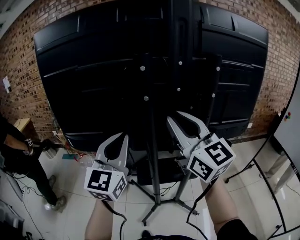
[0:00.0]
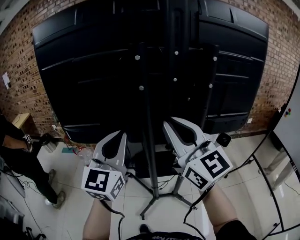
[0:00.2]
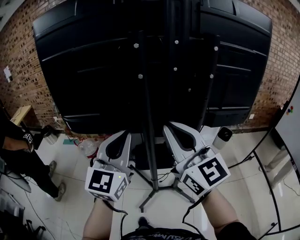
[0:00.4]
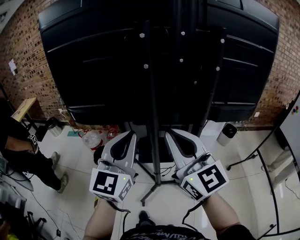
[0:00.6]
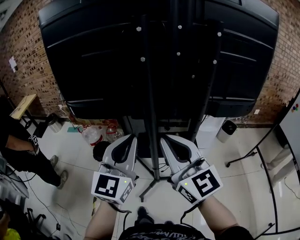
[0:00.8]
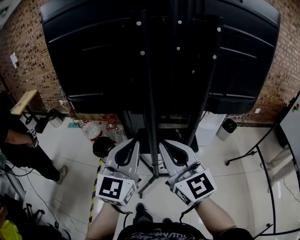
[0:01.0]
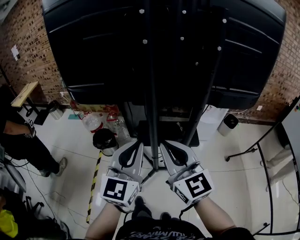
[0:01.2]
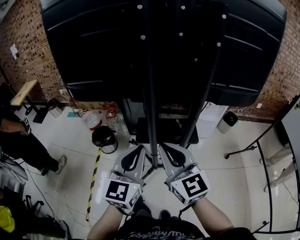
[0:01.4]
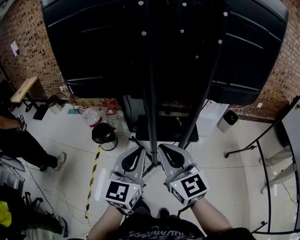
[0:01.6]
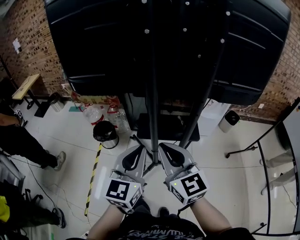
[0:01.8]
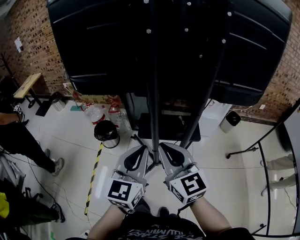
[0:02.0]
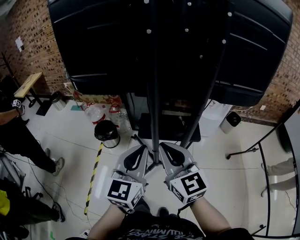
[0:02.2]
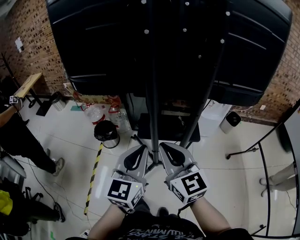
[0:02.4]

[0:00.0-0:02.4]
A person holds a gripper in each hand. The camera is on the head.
0:00.0 to 0:01.2: Both grippers move downward and backward, approximately 20 cm.
0:01.2 to 0:02.4: The left gripper shifts roughly 5 cm downward.

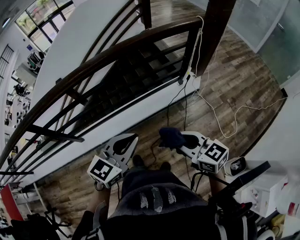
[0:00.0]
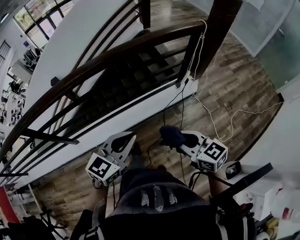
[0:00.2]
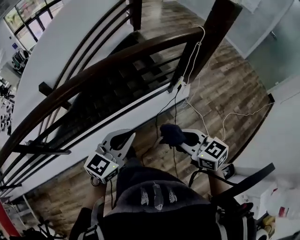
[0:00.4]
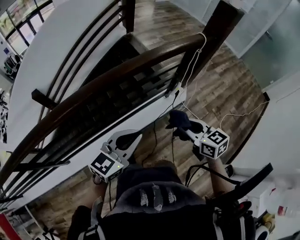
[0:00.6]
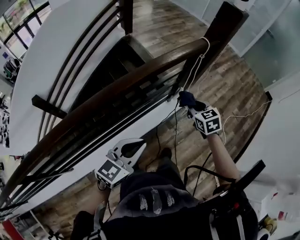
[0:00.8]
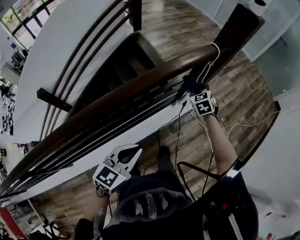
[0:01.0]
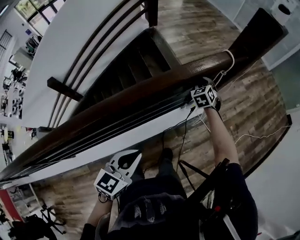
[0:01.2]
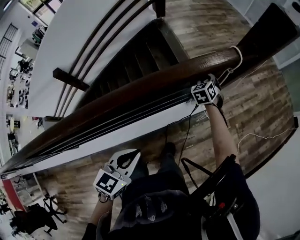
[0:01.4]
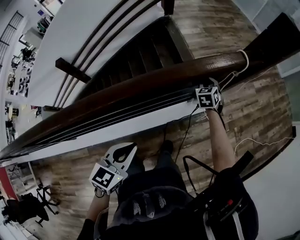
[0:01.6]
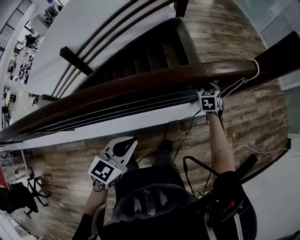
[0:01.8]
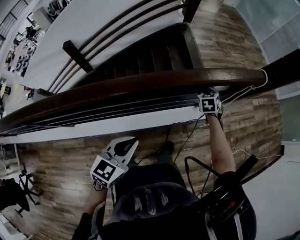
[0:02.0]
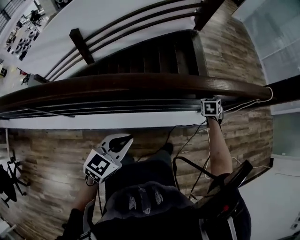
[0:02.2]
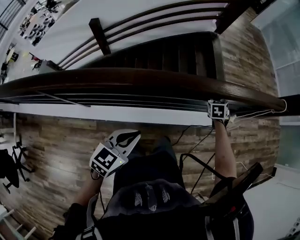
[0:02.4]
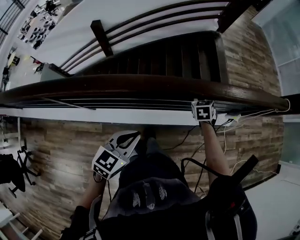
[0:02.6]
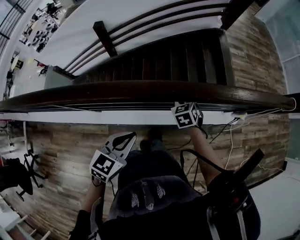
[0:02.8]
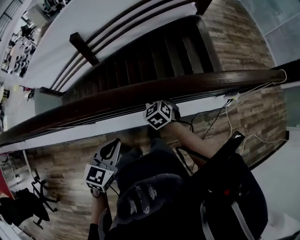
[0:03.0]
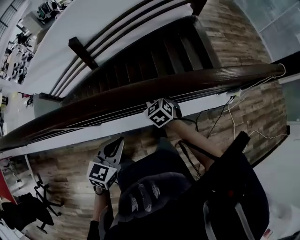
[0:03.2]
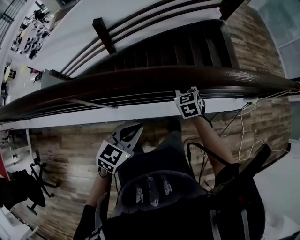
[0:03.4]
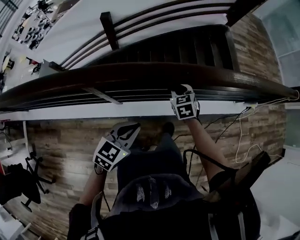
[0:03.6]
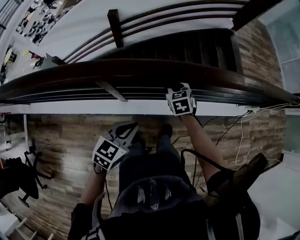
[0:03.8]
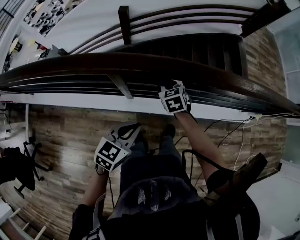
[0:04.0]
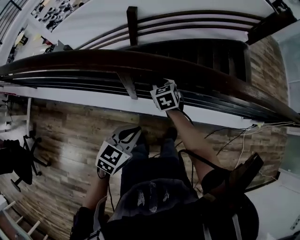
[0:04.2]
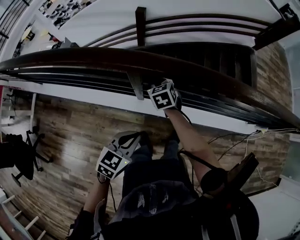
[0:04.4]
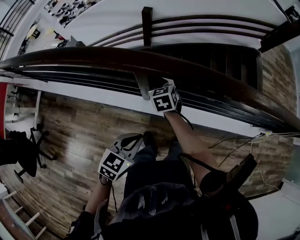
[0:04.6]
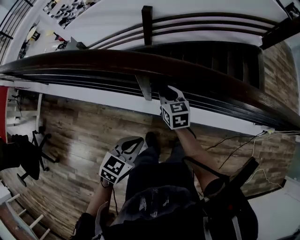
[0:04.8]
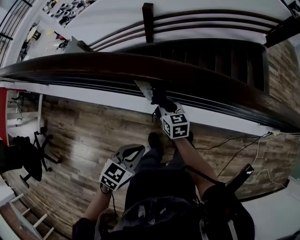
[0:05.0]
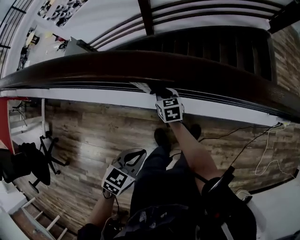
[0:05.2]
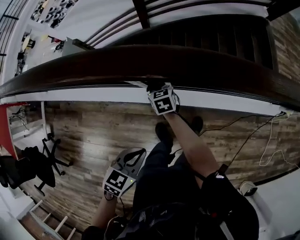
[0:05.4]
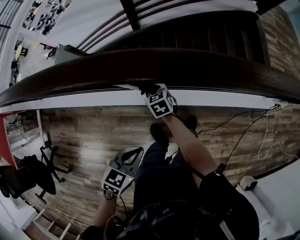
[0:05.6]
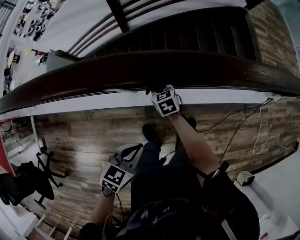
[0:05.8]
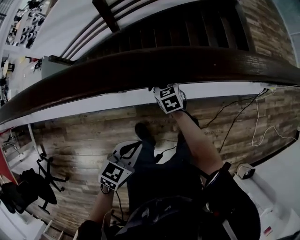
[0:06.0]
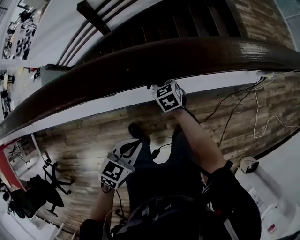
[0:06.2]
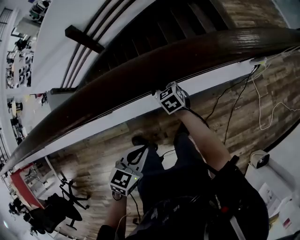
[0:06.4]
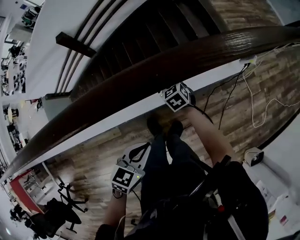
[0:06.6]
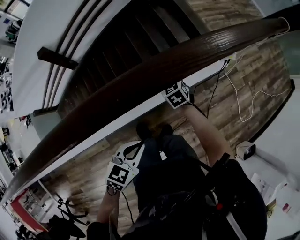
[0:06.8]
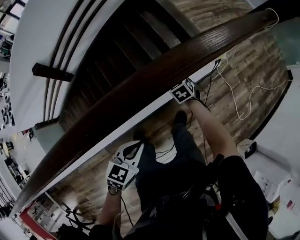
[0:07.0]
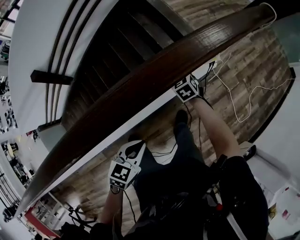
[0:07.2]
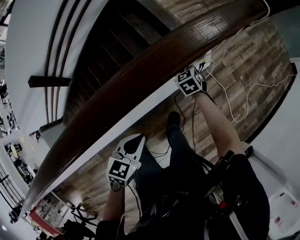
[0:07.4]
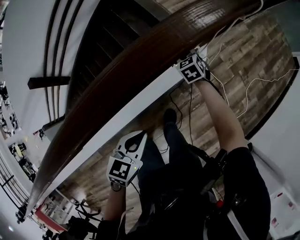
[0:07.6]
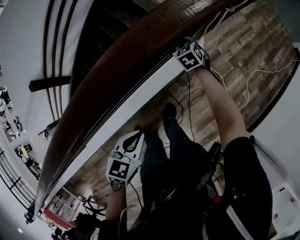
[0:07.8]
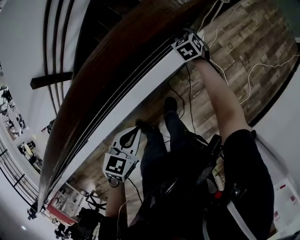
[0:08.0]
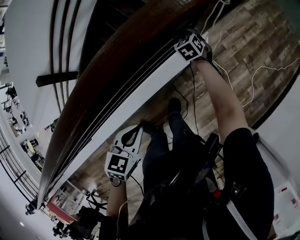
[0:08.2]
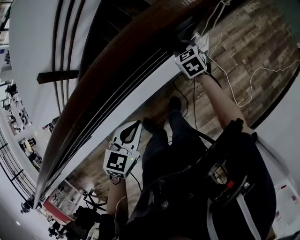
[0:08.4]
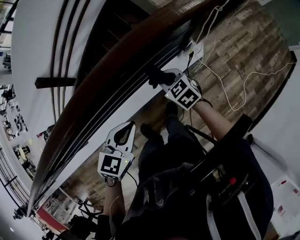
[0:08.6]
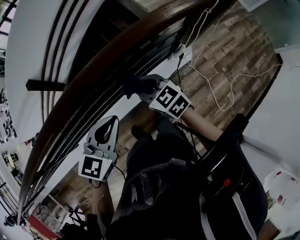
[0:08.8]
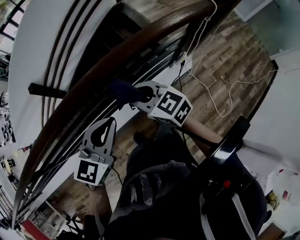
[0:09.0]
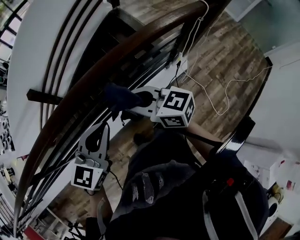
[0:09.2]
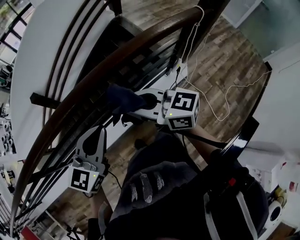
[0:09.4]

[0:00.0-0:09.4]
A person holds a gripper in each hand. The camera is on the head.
0:00.0 to 0:01.6: The right gripper shifts by roughly 70 cm, and rotates roughly 60 degrees. Meanwhile the left gripper changes place by approximately 35 cm.
0:01.6 to 0:03.2: The pair of grippers is taken some 70 cm. The right gripper changes its angle by roughly 40 degrees.
0:03.2 to 0:04.8: The left gripper travels to the left and backward by some 35 cm. Meanwhile the right gripper heads to the left, covering roughly 40 cm, and turns by approximately 30 degrees.
0:04.8 to 0:06.2: The right gripper is displaced to the right and downward by approximately 35 cm; the left gripper shifts about 25 cm to the right, and rotates roughly 20 degrees.
0:06.2 to 0:07.8: Both grippers are carried some 80 cm. The right gripper changes its angle by roughly 30 degrees. Meanwhile the left gripper turns by some 20 degrees.
0:07.8 to 0:09.4: The right gripper changes place by about 70 cm, and tips its fingers upward by about 50 degrees; the left gripper shifts by roughly 35 cm, and points its fingers about 30 degrees further upward.

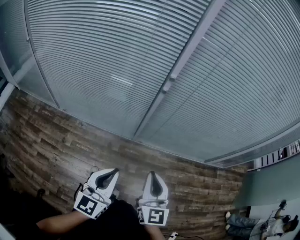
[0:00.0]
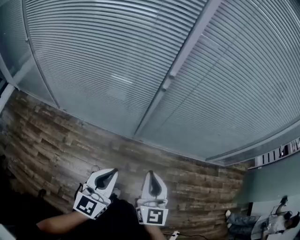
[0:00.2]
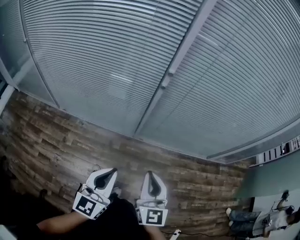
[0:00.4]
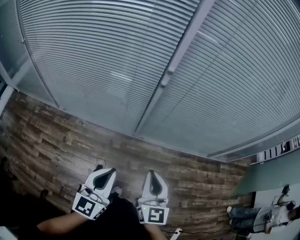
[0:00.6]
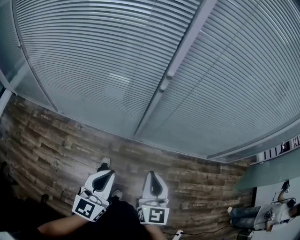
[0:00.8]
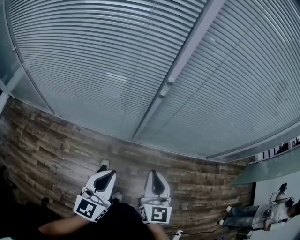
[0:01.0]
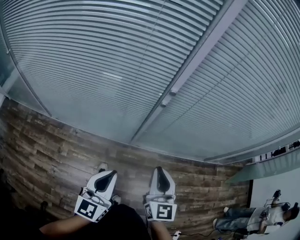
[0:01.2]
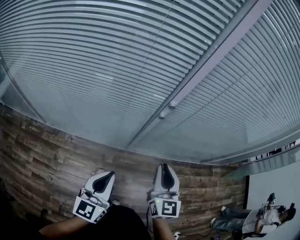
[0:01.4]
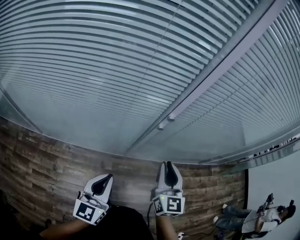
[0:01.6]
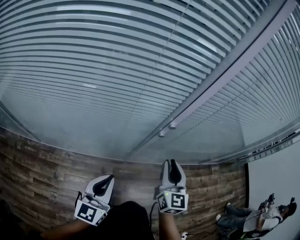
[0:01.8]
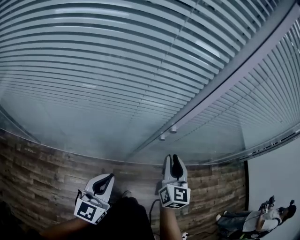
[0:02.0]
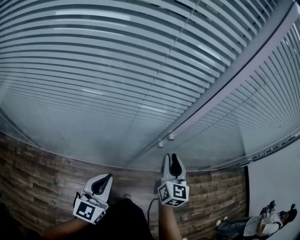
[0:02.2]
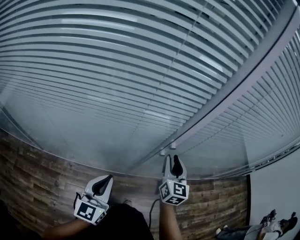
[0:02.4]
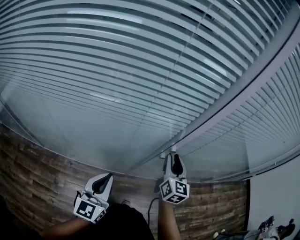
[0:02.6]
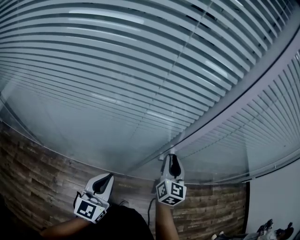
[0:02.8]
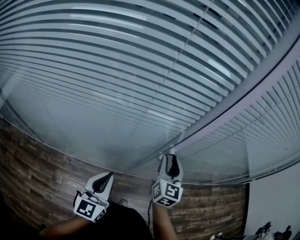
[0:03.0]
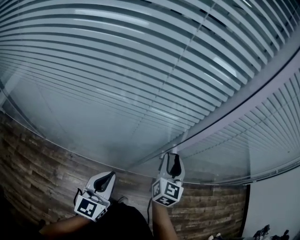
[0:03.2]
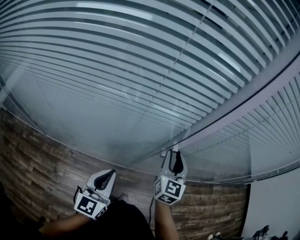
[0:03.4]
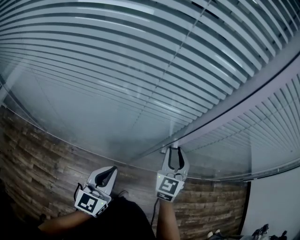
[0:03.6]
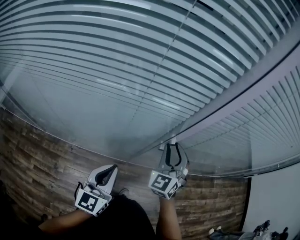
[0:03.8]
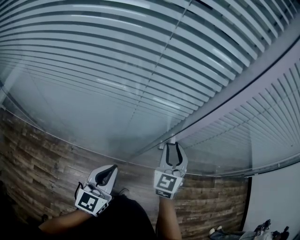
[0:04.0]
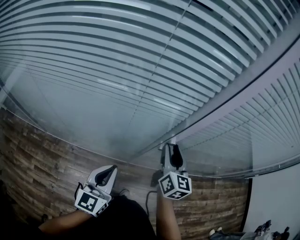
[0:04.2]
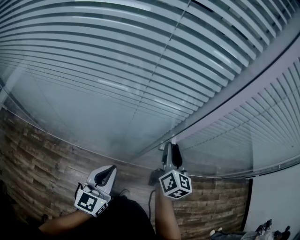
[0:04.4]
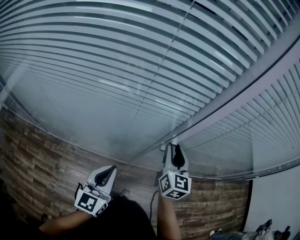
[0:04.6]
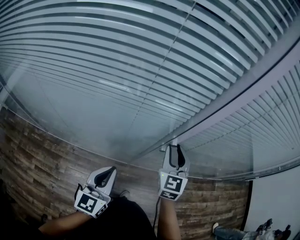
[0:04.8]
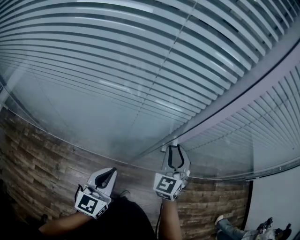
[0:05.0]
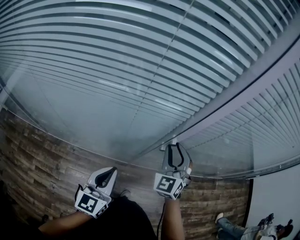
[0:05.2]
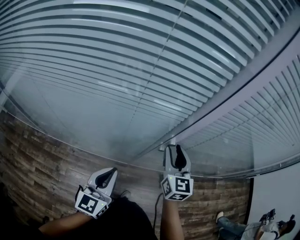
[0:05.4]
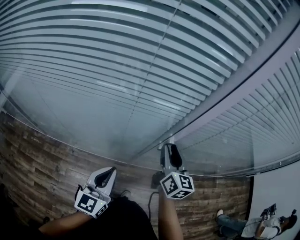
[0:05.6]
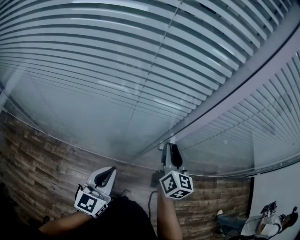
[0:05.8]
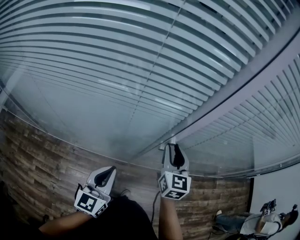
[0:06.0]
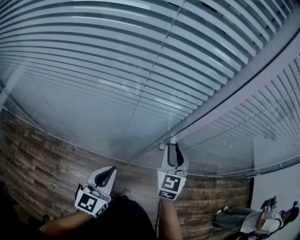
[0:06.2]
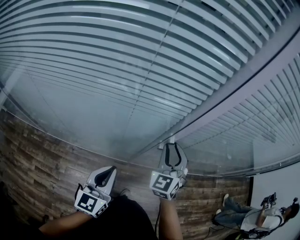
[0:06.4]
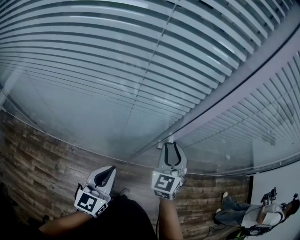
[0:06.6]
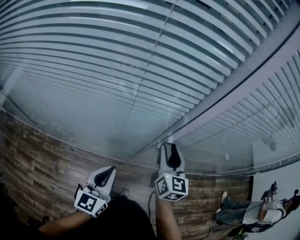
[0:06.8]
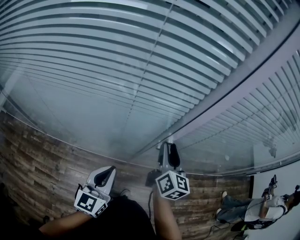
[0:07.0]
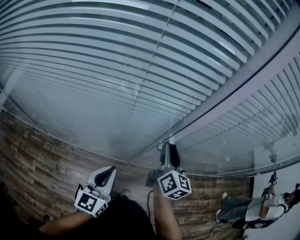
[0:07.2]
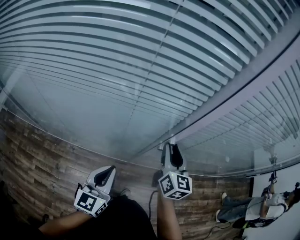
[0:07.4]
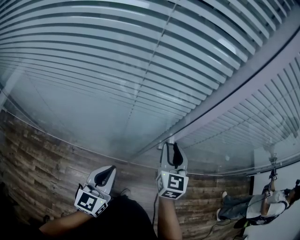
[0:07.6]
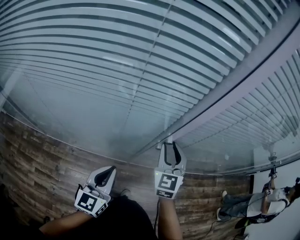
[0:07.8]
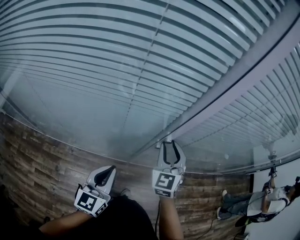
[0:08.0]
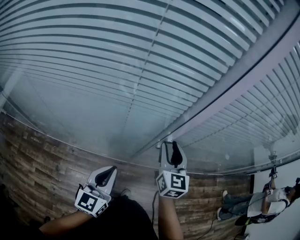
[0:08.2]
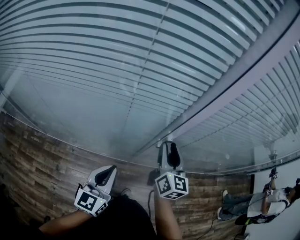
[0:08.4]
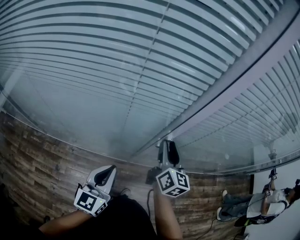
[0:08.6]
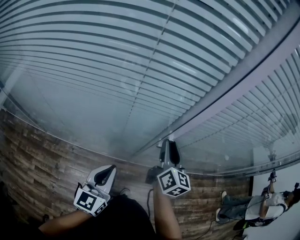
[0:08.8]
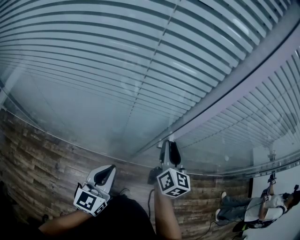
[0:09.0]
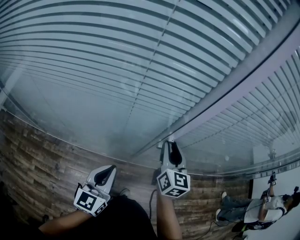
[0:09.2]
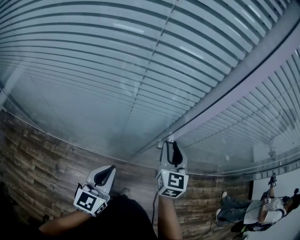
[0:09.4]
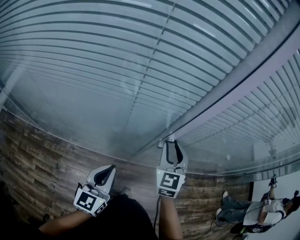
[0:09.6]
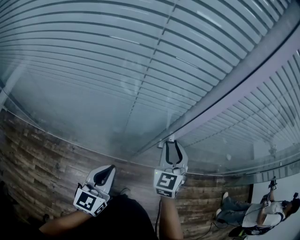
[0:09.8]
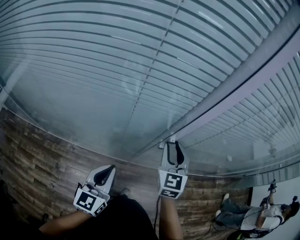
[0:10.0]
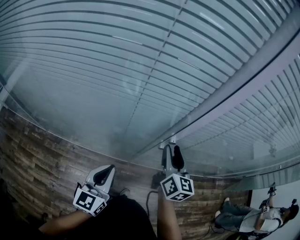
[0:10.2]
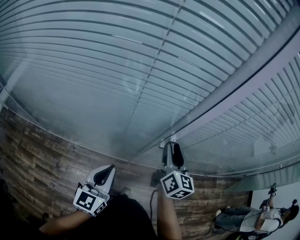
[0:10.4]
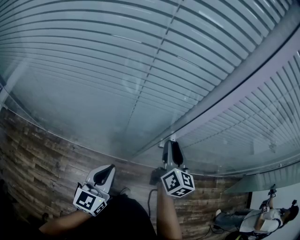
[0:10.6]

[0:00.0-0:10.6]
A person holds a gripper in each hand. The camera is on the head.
0:00.0 to 0:01.6: The right gripper heads forward, covering some 25 cm. The left gripper is displaced forward and to the left by roughly 25 cm.
0:01.6 to 0:03.0: The grippers both shift forward by approximately 15 cm.
0:07.6 to 0:09.0: The right gripper turns by approximately 30 degrees.

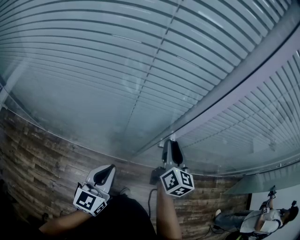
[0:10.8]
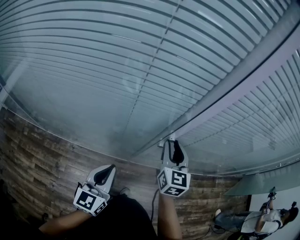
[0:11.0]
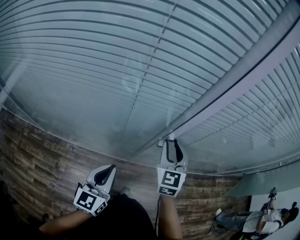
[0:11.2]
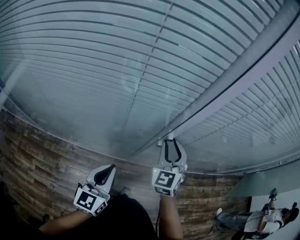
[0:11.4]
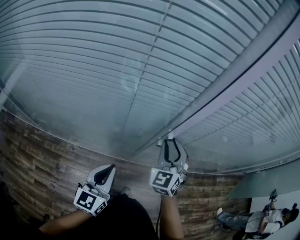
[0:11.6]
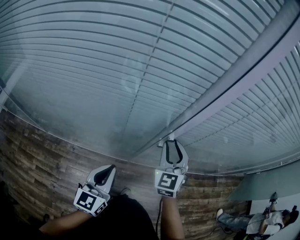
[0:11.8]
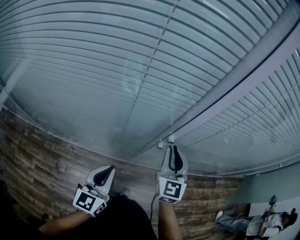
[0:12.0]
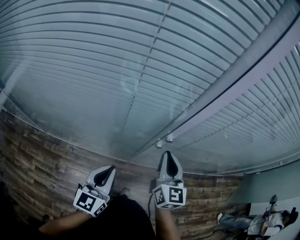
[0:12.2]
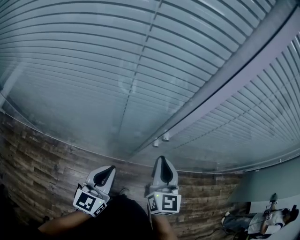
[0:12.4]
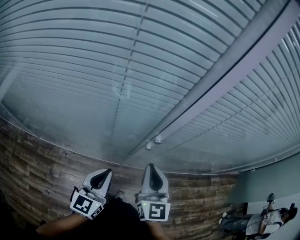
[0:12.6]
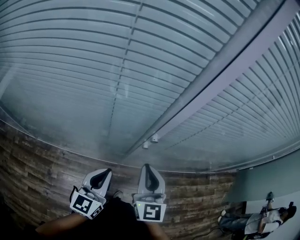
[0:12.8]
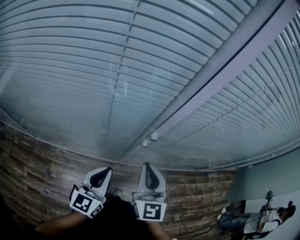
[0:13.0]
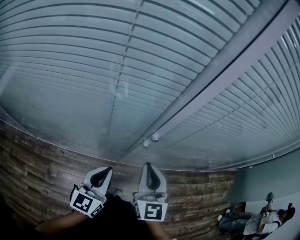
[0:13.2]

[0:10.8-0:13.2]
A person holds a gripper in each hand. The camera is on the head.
0:10.8 to 0:12.0: The right gripper rotates approximately 30 degrees.
0:12.0 to 0:13.2: The right gripper heads backward, covering some 10 cm.
